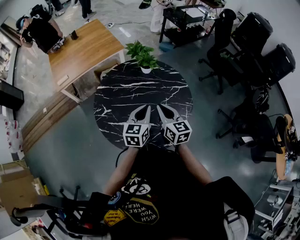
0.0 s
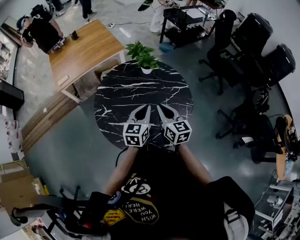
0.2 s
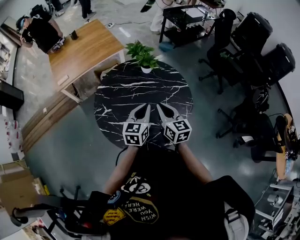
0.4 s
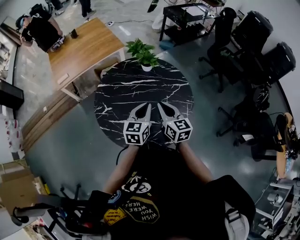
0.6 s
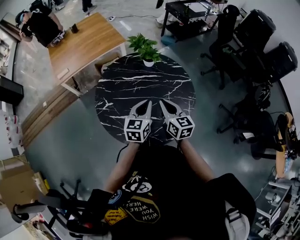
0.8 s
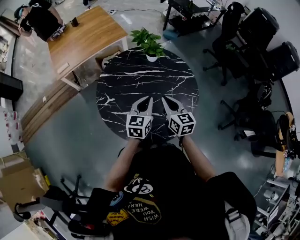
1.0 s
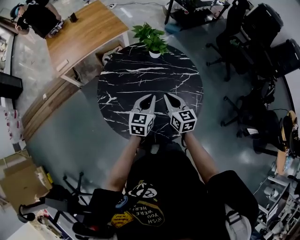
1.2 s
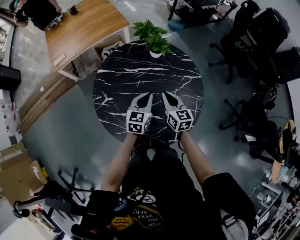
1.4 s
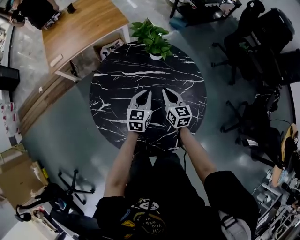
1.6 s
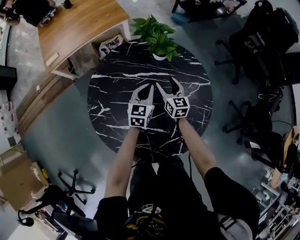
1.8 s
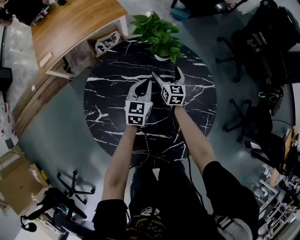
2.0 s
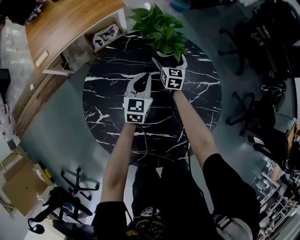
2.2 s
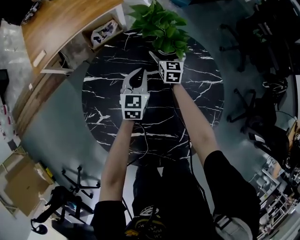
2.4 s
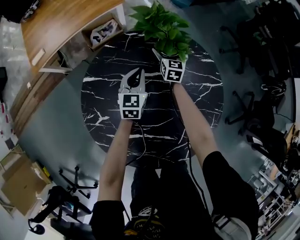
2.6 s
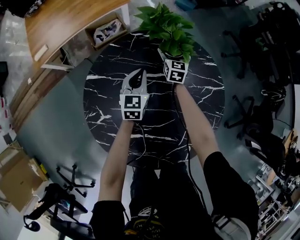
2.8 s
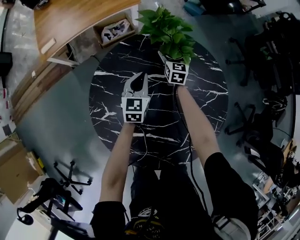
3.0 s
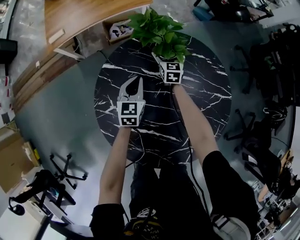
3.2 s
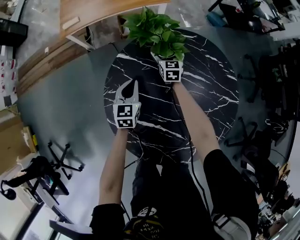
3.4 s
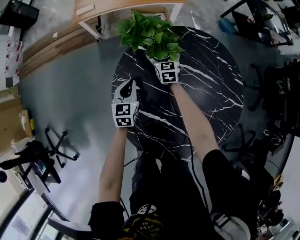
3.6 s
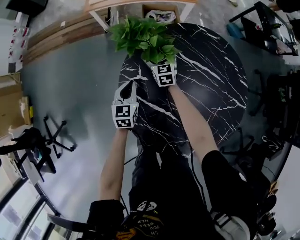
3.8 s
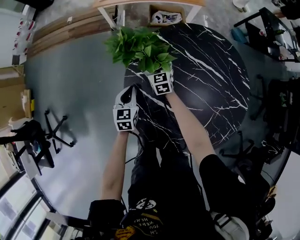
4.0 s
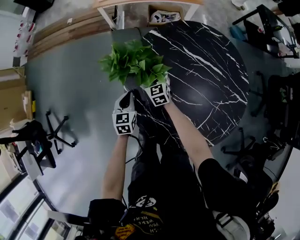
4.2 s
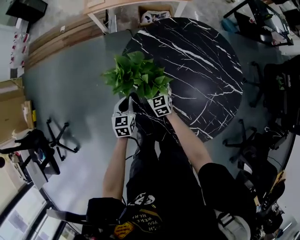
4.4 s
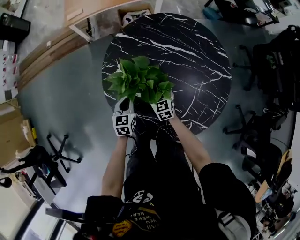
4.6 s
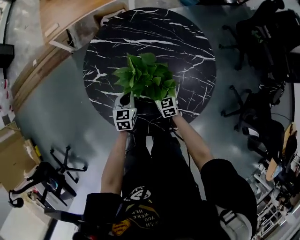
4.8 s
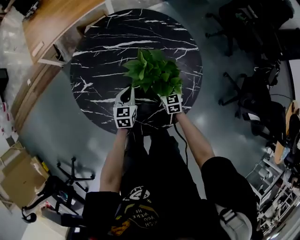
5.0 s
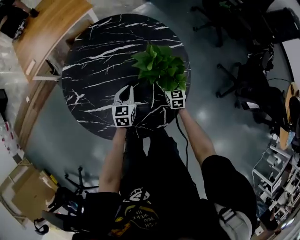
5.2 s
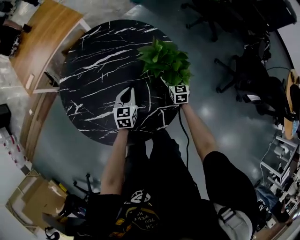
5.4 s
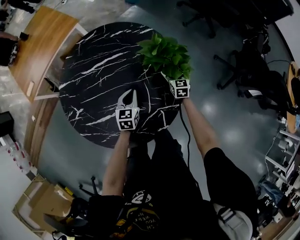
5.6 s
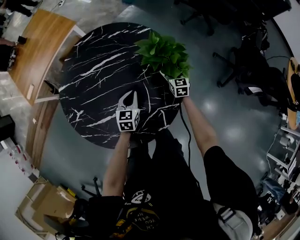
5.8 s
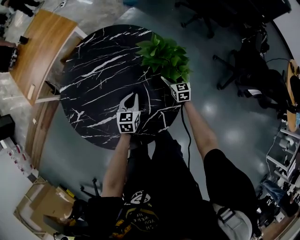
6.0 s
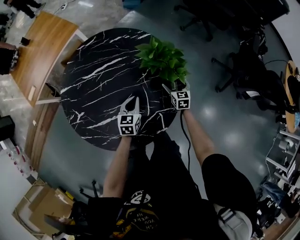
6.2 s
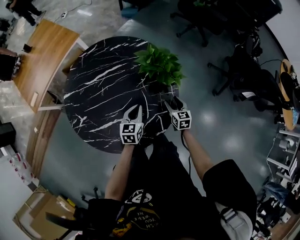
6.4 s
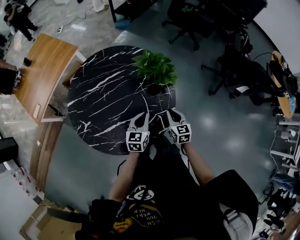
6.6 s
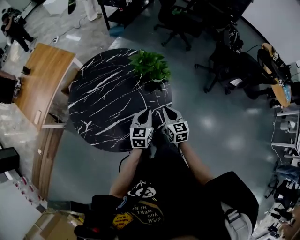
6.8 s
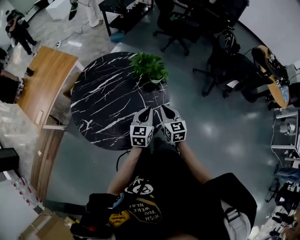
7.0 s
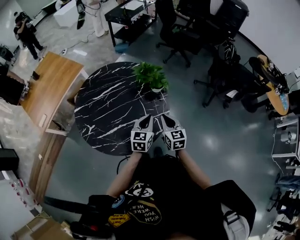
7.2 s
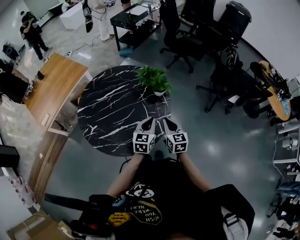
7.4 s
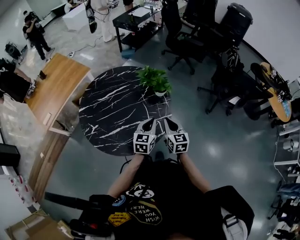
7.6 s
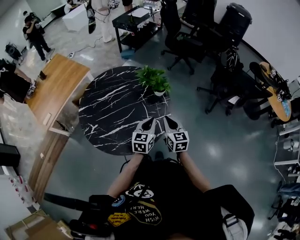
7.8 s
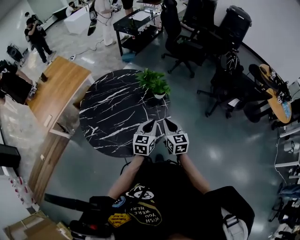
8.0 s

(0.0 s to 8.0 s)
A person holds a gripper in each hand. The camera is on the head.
0.0 s - 1.6 s: The grippers both shift downward and forward by approximately 20 cm.
1.6 s - 3.2 s: The left gripper goes about 20 cm to the left, downward and forward. The right gripper shifts approximately 35 cm forward, downward and to the left, and opens its fingers.
3.2 s - 4.8 s: The left gripper shifts by roughly 25 cm, while the right gripper ends up approximately 35 cm from where it was.
4.8 s - 6.4 s: The right gripper changes place by some 30 cm, swivels roughly 40 degrees, and closes; the left gripper changes place by some 25 cm, and rotates roughly 30 degrees.
6.4 s - 8.0 s: The left gripper goes about 25 cm upward, backward and to the right. Meanwhile the right gripper shifts roughly 30 cm upward and backward, and closes.

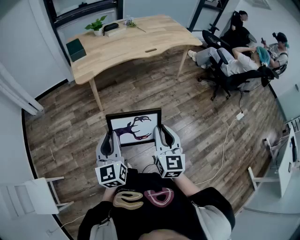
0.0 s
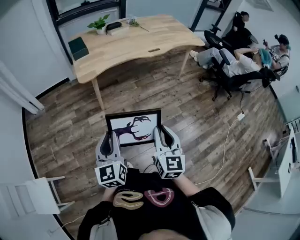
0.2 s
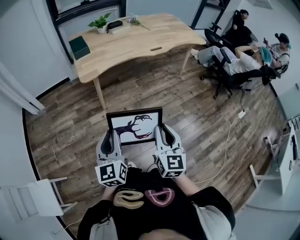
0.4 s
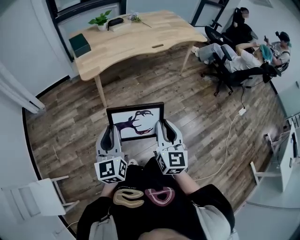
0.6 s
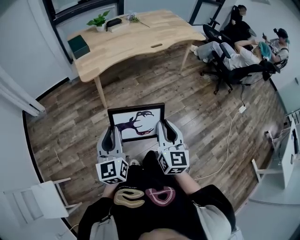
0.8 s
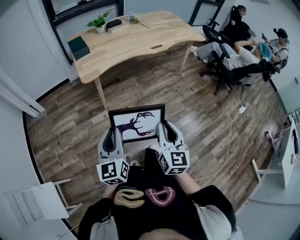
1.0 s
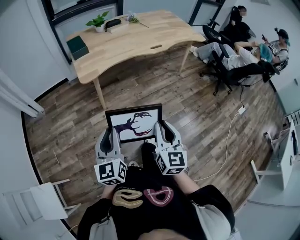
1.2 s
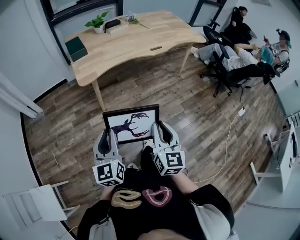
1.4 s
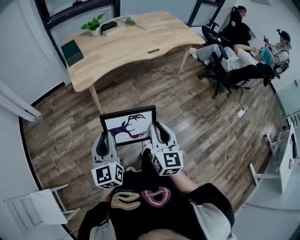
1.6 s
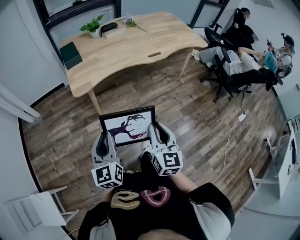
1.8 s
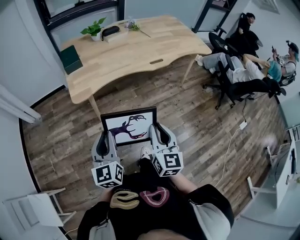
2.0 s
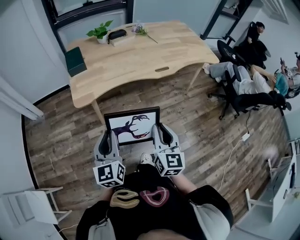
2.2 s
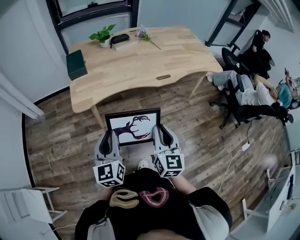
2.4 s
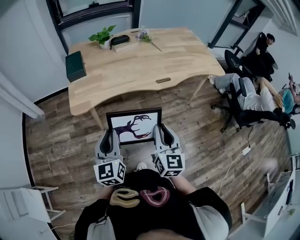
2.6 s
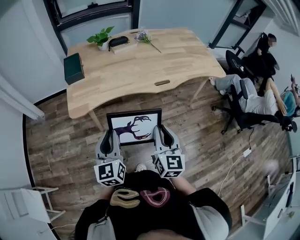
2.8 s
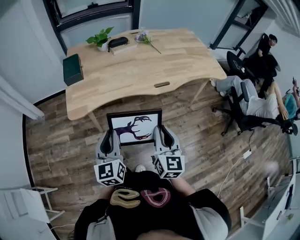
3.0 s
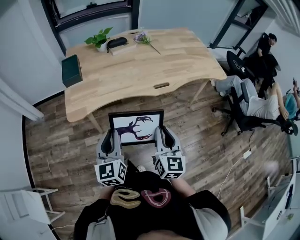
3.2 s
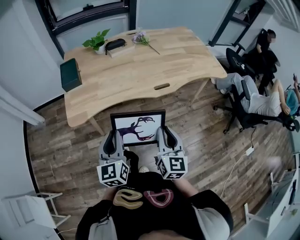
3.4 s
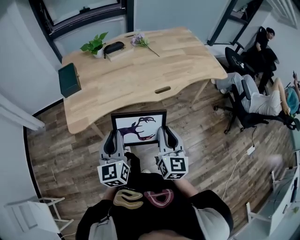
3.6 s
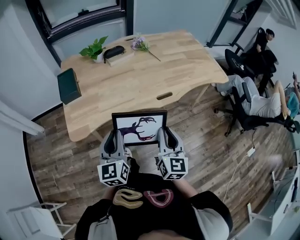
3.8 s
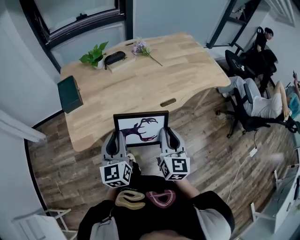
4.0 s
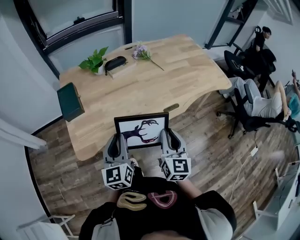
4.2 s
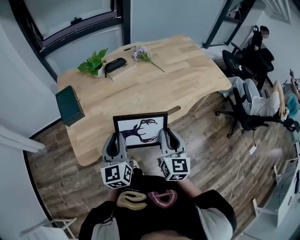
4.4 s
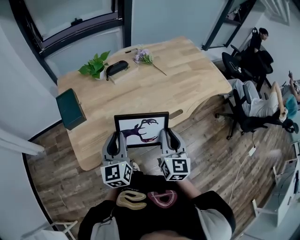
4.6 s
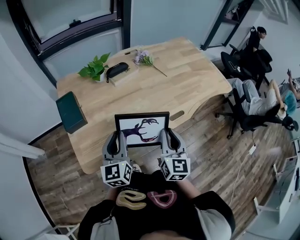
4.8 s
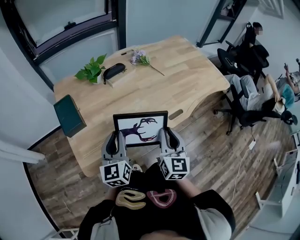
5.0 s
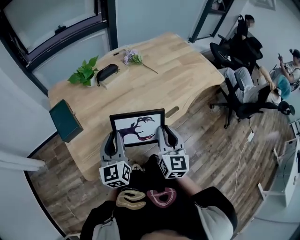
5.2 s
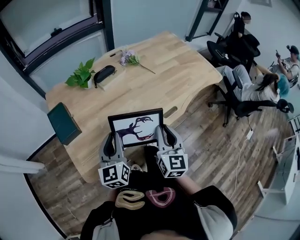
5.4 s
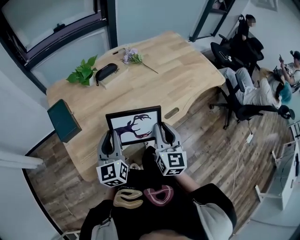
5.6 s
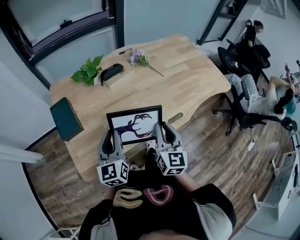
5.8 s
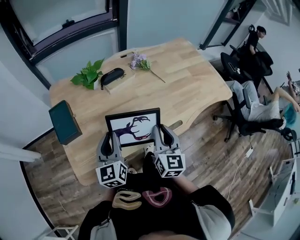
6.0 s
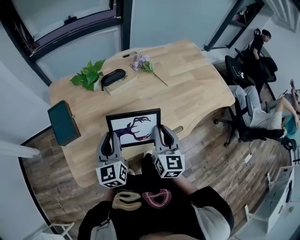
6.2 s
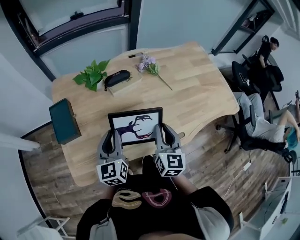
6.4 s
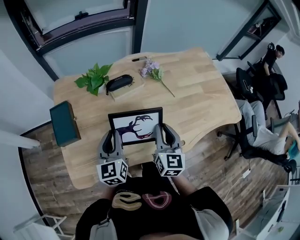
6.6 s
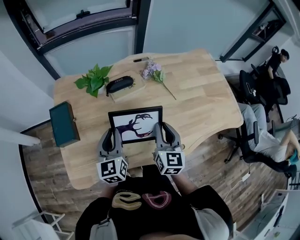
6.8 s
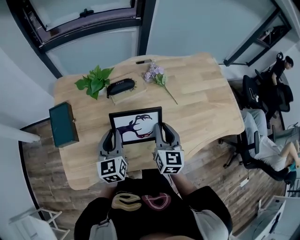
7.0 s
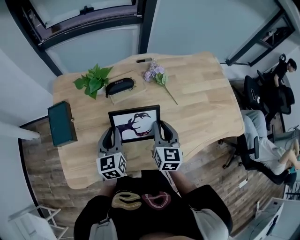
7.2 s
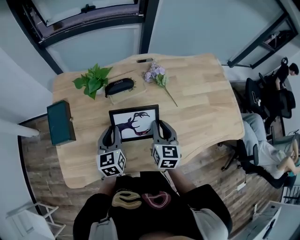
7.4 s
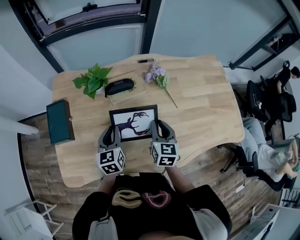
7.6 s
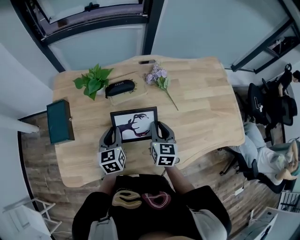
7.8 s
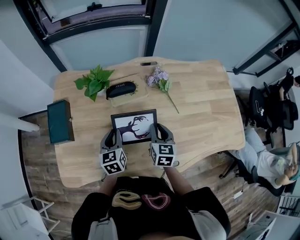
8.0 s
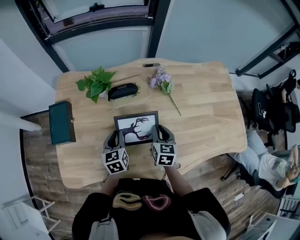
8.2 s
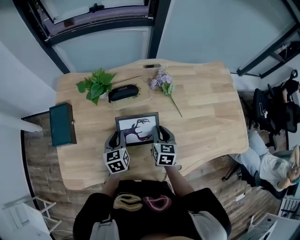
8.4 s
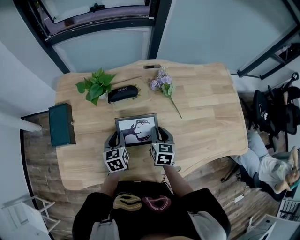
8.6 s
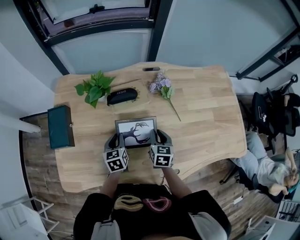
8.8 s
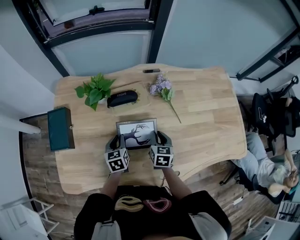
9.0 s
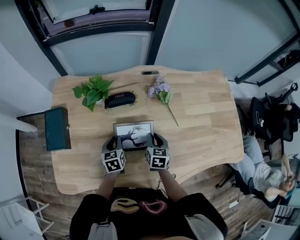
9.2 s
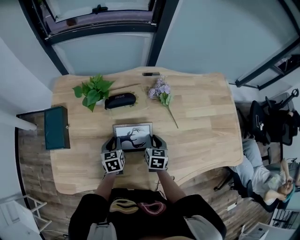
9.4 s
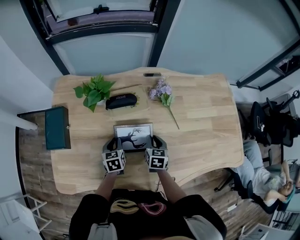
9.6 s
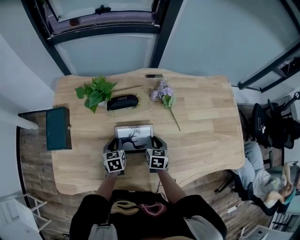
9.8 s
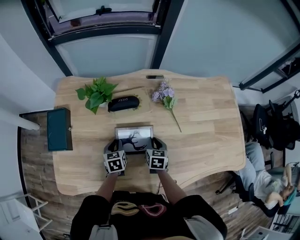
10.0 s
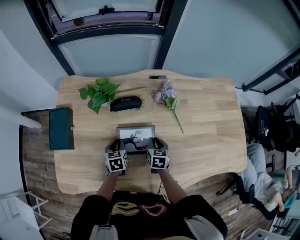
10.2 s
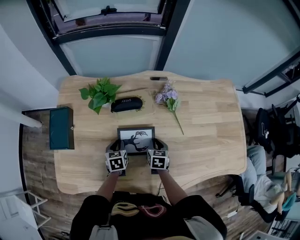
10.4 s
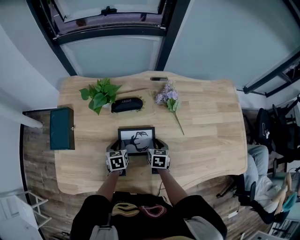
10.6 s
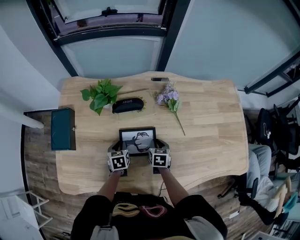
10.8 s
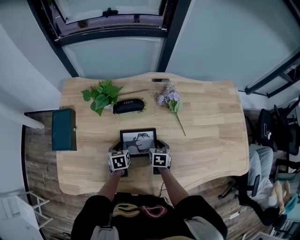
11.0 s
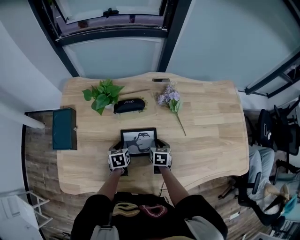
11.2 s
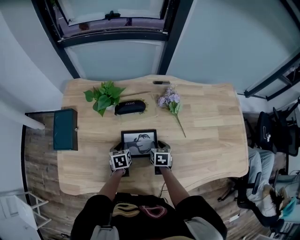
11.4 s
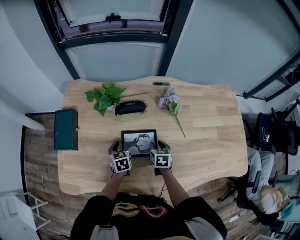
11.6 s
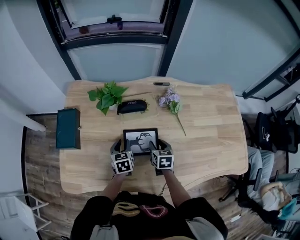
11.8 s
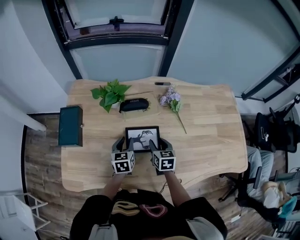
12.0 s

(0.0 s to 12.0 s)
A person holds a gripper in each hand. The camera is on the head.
0.0 s - 1.6 s: Both grippers travel together forward and to the left, approximately 10 cm.
1.6 s - 3.0 s: The two grippers go about 30 cm forward and to the right.
3.0 s - 4.4 s: Both grippers move forward, some 25 cm.
4.4 s - 6.0 s: Both grippers move forward, roughly 15 cm.
6.0 s - 7.6 s: The left gripper shifts roughly 20 cm forward and downward. The right gripper goes approximately 20 cm forward, and turns by roughly 20 degrees.
7.6 s - 9.0 s: Both grippers travel together downward, approximately 10 cm.
9.0 s - 10.4 s: The right gripper goes some 5 cm downward.
10.4 s - 12.0 s: The grippers both shift upward by roughly 10 cm. The right gripper opens.

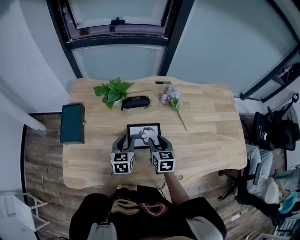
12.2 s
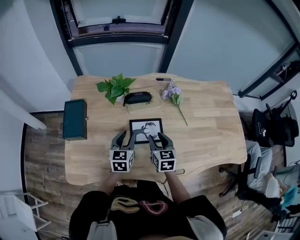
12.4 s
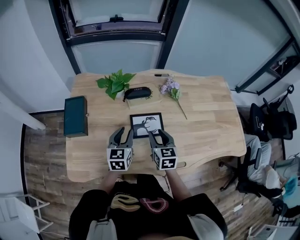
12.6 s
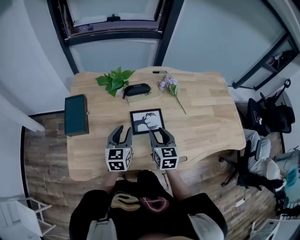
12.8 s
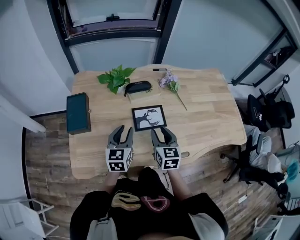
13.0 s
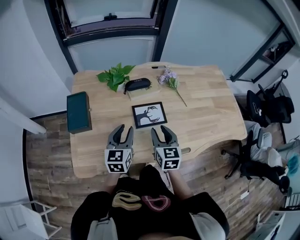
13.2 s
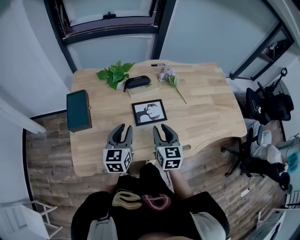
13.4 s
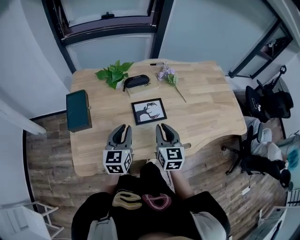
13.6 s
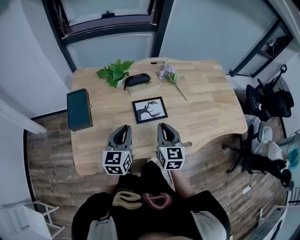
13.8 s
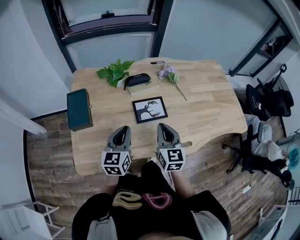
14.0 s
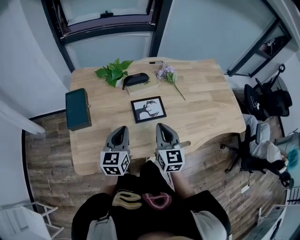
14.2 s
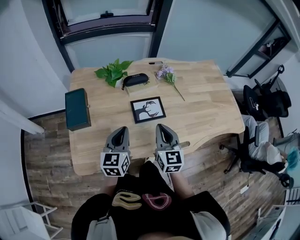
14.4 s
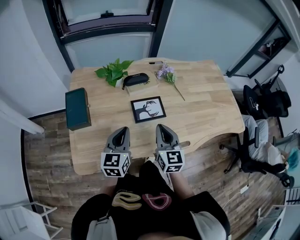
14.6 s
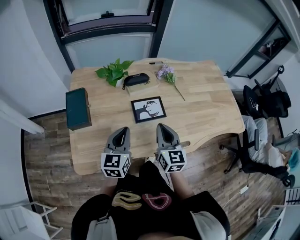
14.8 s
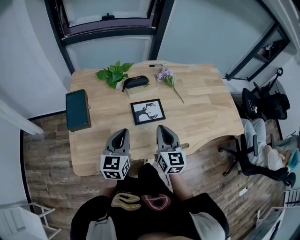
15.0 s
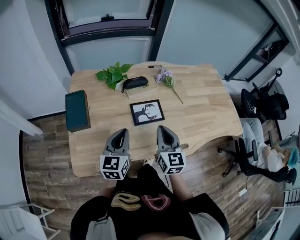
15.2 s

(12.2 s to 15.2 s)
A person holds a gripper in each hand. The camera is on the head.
12.2 s - 13.8 s: The right gripper shifts roughly 15 cm backward and upward, and closes. The left gripper heads backward, upward and to the left, covering roughly 20 cm, and closes.
13.8 s - 15.2 s: The grippers stay close to where they were, moving slightly.

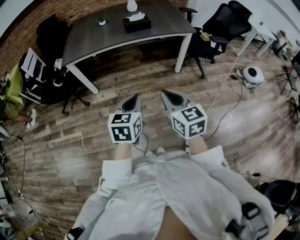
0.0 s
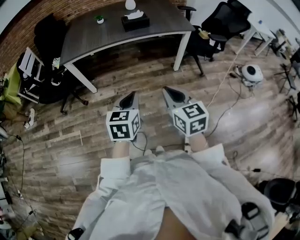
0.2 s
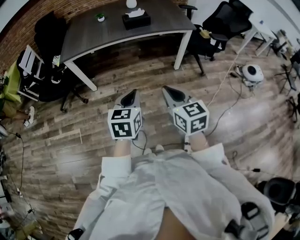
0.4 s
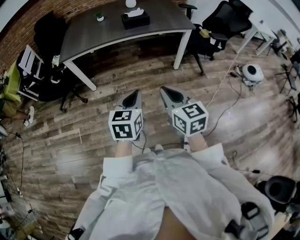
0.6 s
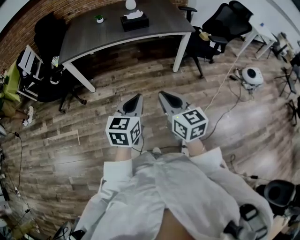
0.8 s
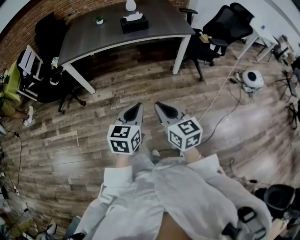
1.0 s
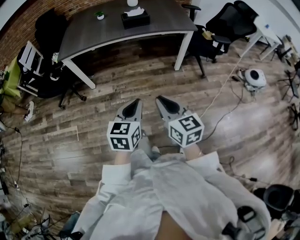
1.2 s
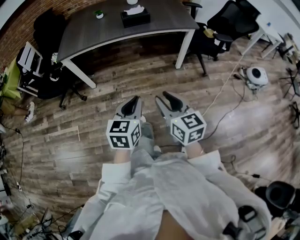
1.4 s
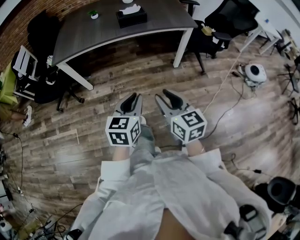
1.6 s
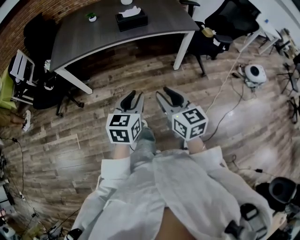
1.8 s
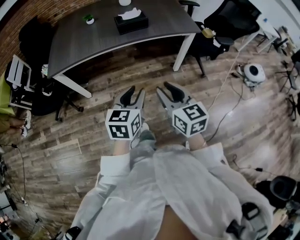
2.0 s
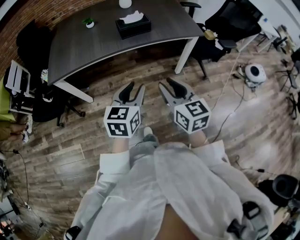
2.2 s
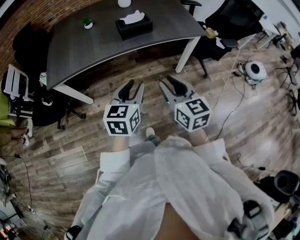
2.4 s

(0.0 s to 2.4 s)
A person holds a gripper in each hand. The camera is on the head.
0.0 s - 1.2 s: The left gripper travels to the right by approximately 5 cm.
1.2 s - 2.4 s: The grippers both shift forward by some 30 cm. The right gripper opens its fingers. Meanwhile the left gripper opens its fingers.
